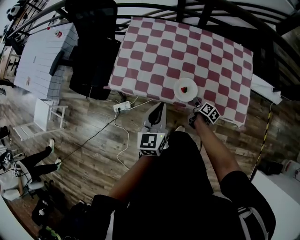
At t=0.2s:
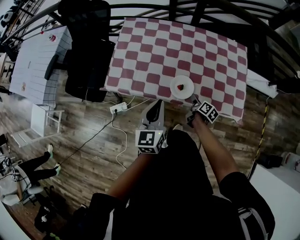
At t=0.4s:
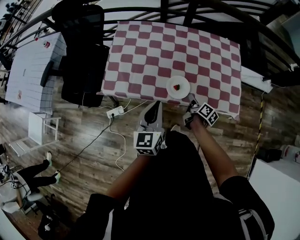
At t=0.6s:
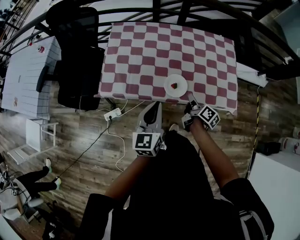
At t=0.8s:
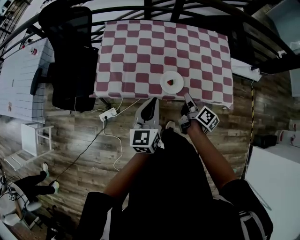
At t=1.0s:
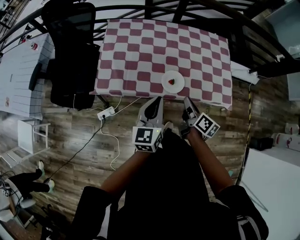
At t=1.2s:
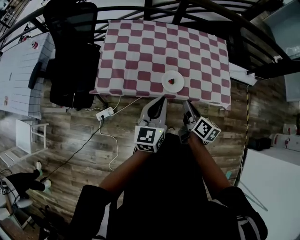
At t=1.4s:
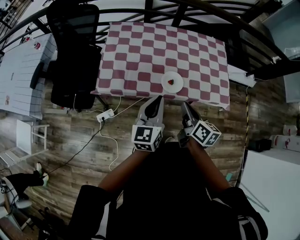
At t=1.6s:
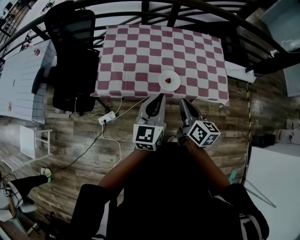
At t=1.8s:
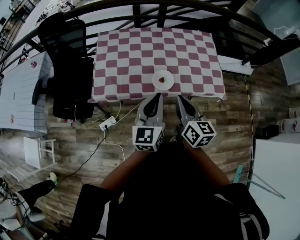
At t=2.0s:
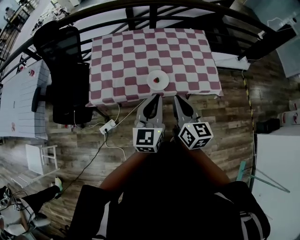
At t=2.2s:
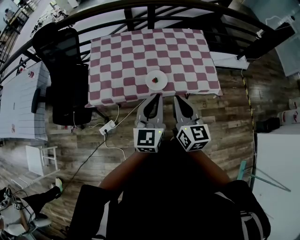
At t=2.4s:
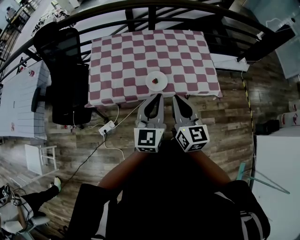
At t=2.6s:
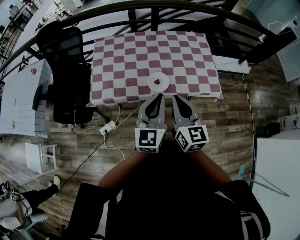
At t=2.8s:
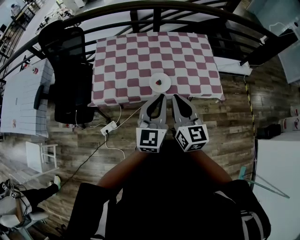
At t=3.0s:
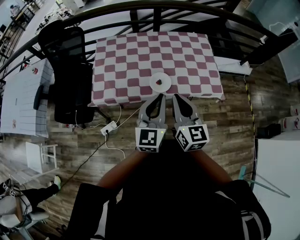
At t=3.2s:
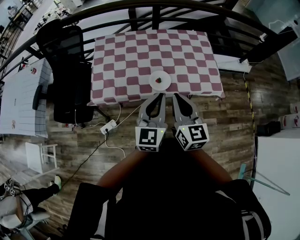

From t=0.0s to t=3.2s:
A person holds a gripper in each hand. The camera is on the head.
From t=0.0s to t=1.6s: The left gripper travels upward and backward by approximately 10 cm, and changes its angle by some 20 degrees, while the right gripper heads upward and backward, covering approximately 35 cm, and rotates about 40 degrees.
From t=1.6s to t=3.2s: The left gripper moves to the right, some 5 cm. Meanwhile the right gripper goes approximately 5 cm upward, and changes its angle by about 30 degrees.

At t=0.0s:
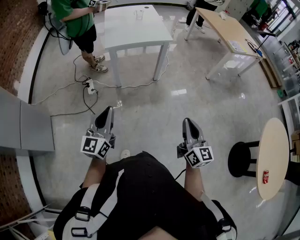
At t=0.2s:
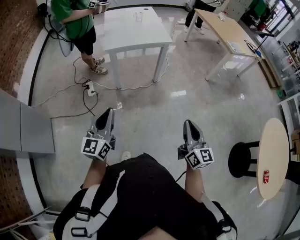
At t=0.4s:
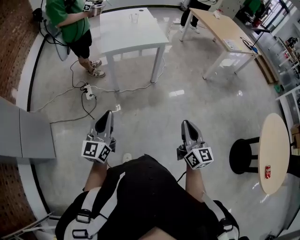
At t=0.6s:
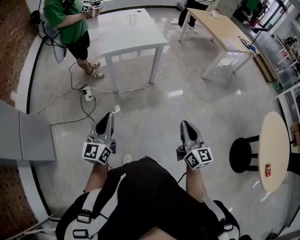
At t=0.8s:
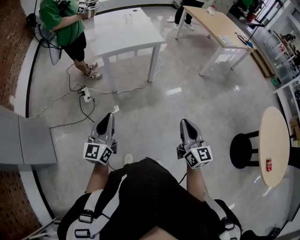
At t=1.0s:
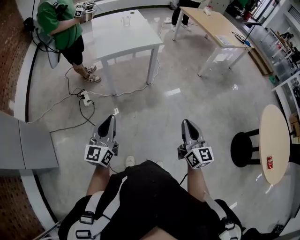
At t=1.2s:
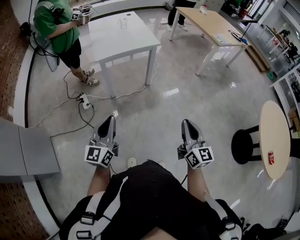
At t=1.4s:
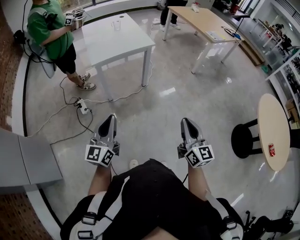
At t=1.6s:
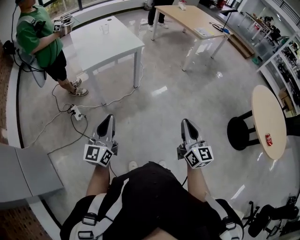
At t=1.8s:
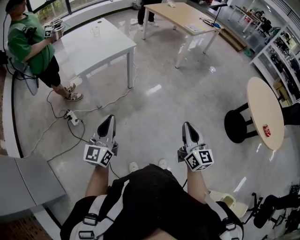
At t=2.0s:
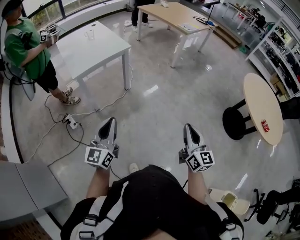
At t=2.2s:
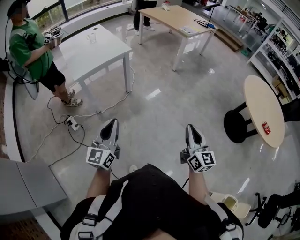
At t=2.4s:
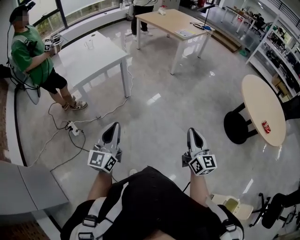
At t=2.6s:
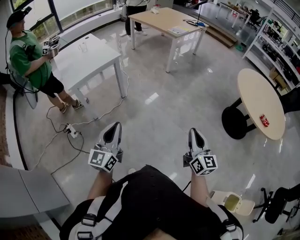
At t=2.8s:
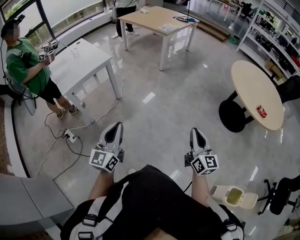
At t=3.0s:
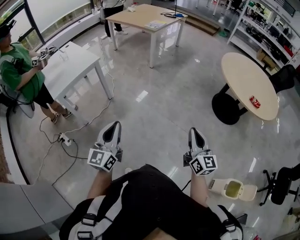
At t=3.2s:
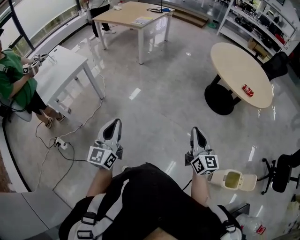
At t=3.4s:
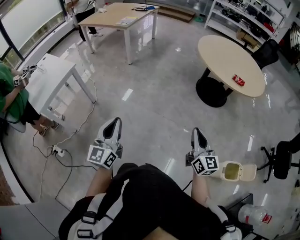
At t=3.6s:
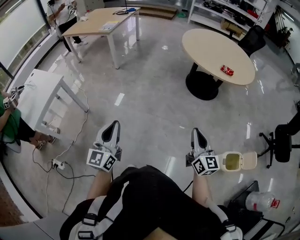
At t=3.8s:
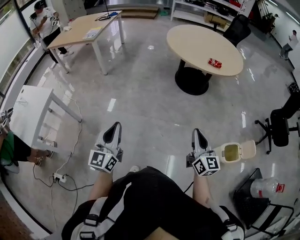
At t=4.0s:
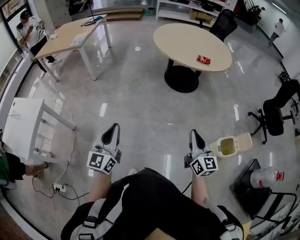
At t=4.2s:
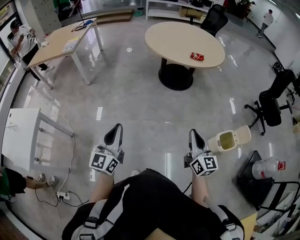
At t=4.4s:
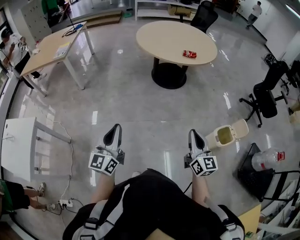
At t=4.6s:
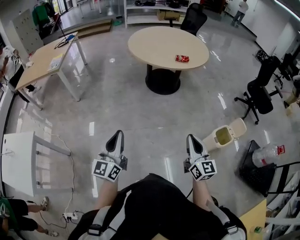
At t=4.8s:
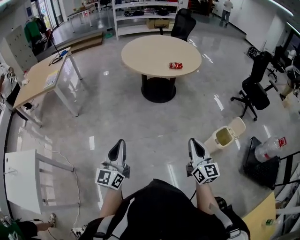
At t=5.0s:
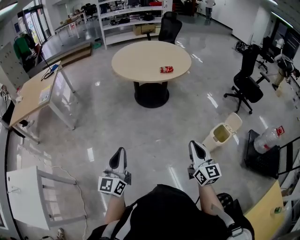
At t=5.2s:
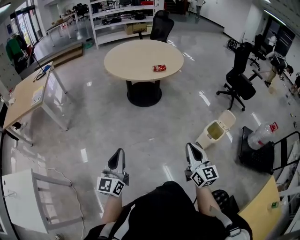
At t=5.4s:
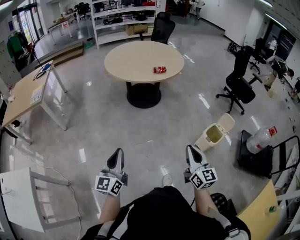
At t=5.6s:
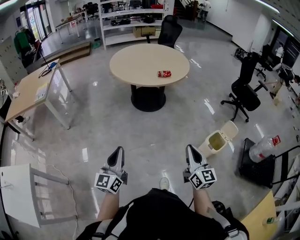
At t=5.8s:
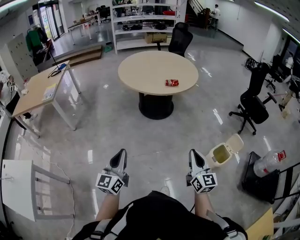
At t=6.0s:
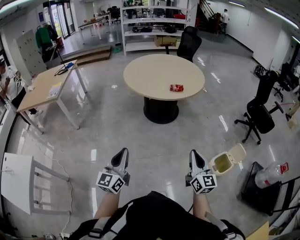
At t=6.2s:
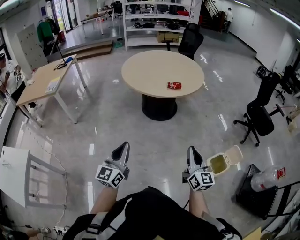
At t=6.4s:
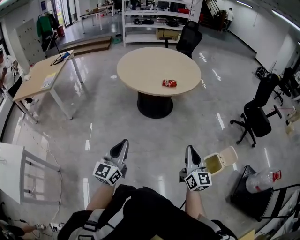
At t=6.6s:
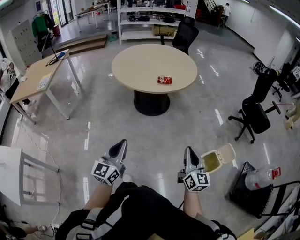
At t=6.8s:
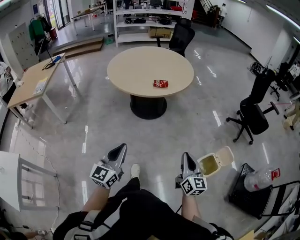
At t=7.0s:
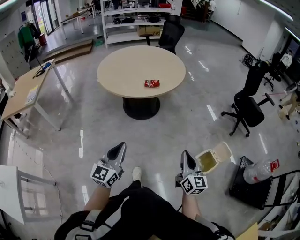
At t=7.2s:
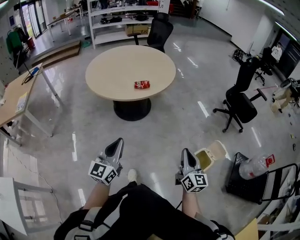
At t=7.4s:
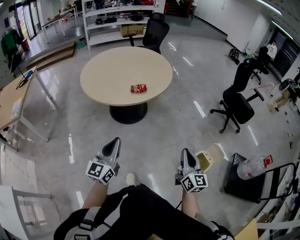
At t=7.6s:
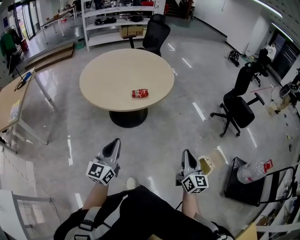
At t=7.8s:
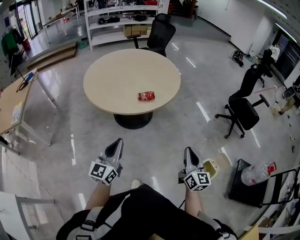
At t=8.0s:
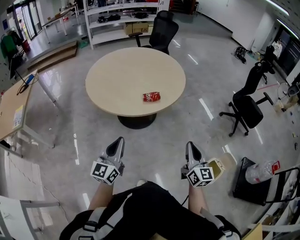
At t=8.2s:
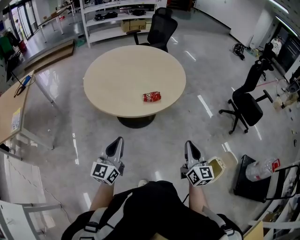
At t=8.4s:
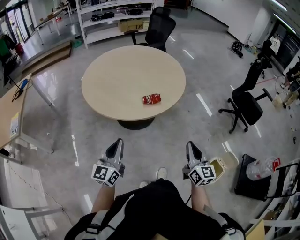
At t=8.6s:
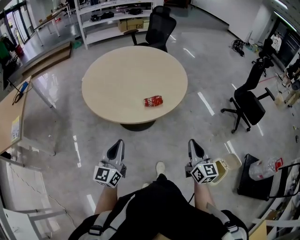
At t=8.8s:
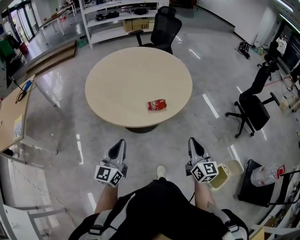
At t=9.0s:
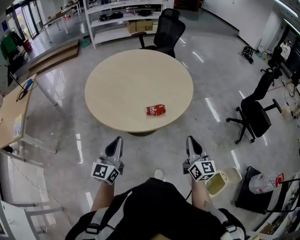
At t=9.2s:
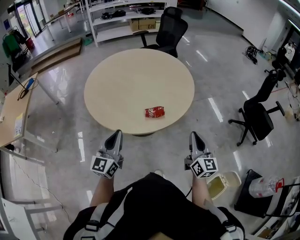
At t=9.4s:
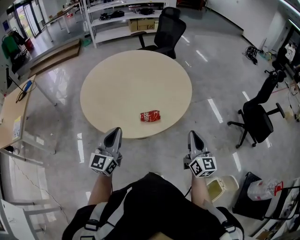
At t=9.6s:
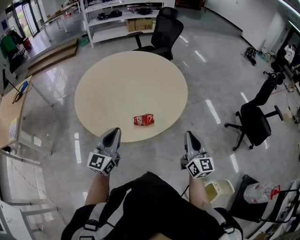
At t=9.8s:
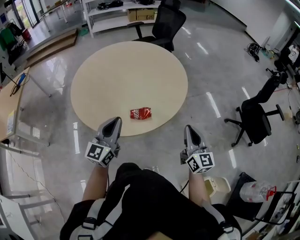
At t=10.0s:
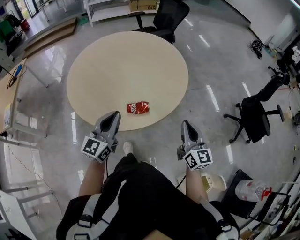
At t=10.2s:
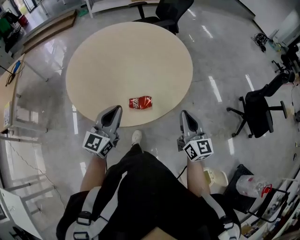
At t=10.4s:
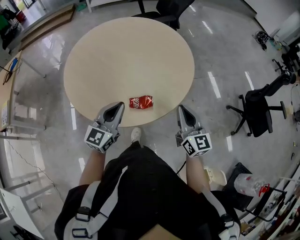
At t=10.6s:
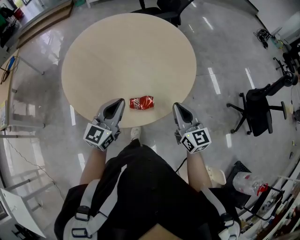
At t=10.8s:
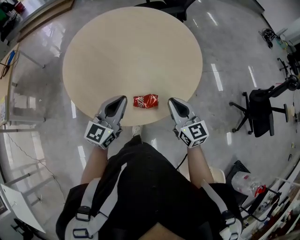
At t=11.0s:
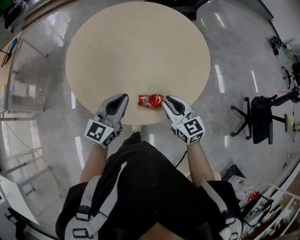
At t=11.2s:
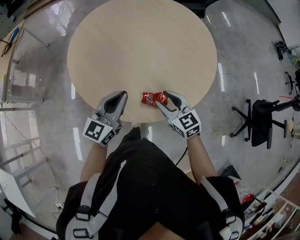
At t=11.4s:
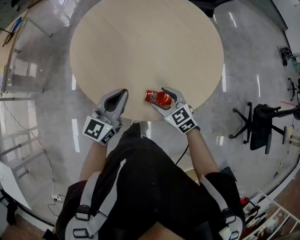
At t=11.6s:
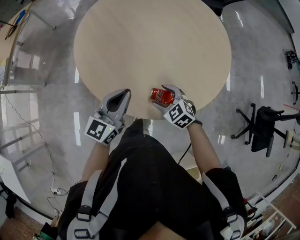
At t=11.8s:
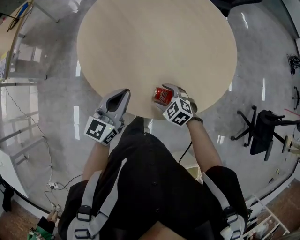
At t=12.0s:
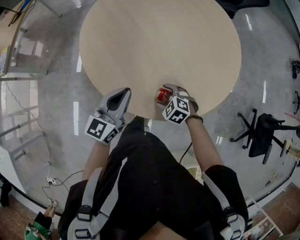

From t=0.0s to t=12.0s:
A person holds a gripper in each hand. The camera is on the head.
From t=0.0s to t=1.6s: The right gripper ends up some 5 cm from where it was.
From t=1.6s to t=3.0s: The right gripper goes approximately 25 cm to the right and backward, and changes its angle by some 20 degrees, while the left gripper goes about 20 cm to the right, and changes its angle by approximately 20 degrees.
From t=3.0s to t=4.4s: The right gripper ends up some 20 cm from where it was, and rotates about 40 degrees. The left gripper moves roughly 25 cm, and changes its angle by some 40 degrees.
From t=4.4s to t=6.0s: Both grippers move forward and to the right, some 15 cm.
From t=6.0s to t=7.6s: Both grippers move forward and to the right, about 25 cm.
From t=7.6s to t=9.0s: The grippers both shift forward and to the left by about 25 cm.
From t=9.0s to t=10.4s: The right gripper is displaced forward by approximately 20 cm, while the left gripper goes some 25 cm forward and to the right.
From t=10.4s to t=12.0s: The left gripper moves roughly 15 cm, and swivels approximately 20 degrees; the right gripper is displaced downward by approximately 25 cm, tilts its fingers roughly 60 degrees downward, and opens up.

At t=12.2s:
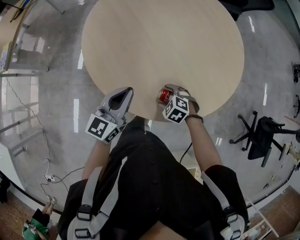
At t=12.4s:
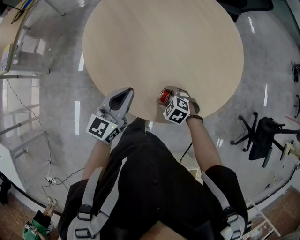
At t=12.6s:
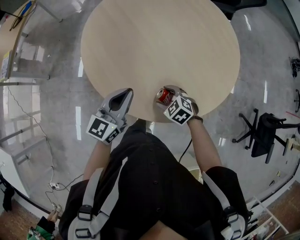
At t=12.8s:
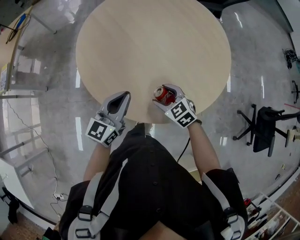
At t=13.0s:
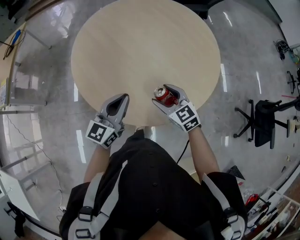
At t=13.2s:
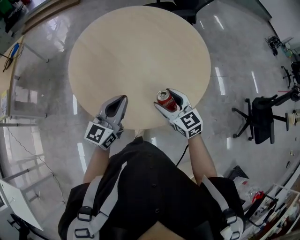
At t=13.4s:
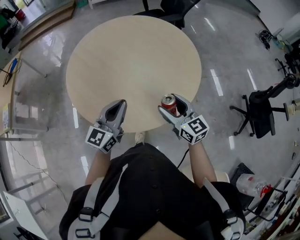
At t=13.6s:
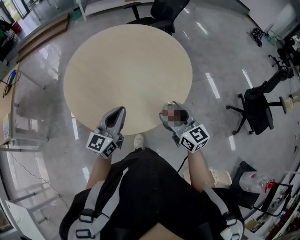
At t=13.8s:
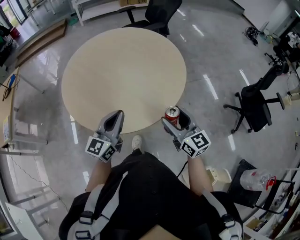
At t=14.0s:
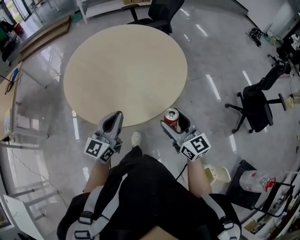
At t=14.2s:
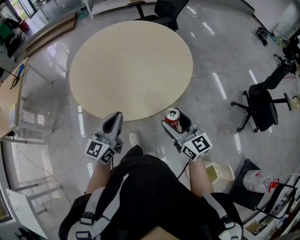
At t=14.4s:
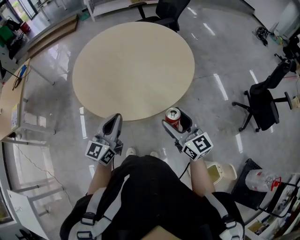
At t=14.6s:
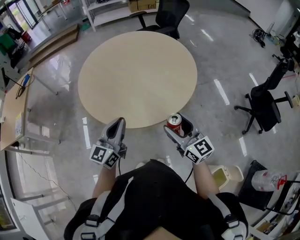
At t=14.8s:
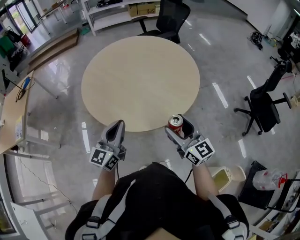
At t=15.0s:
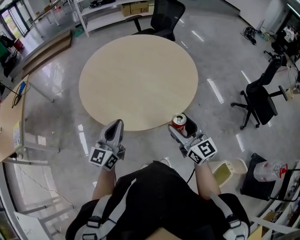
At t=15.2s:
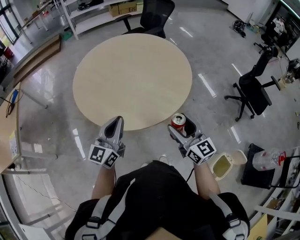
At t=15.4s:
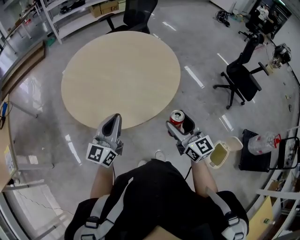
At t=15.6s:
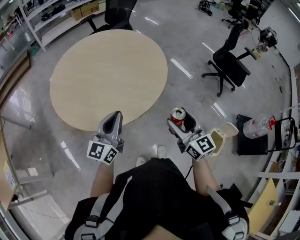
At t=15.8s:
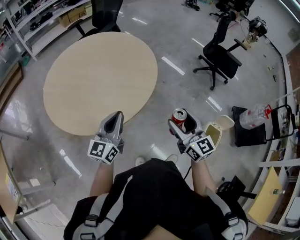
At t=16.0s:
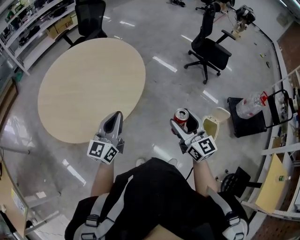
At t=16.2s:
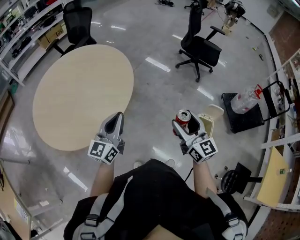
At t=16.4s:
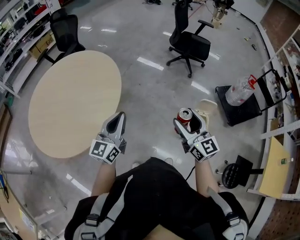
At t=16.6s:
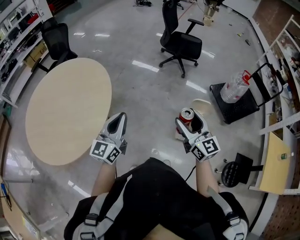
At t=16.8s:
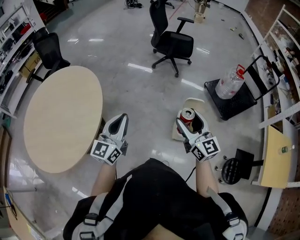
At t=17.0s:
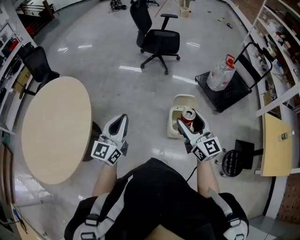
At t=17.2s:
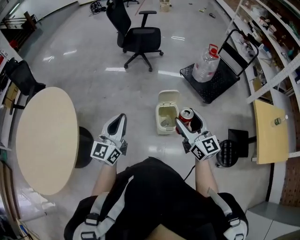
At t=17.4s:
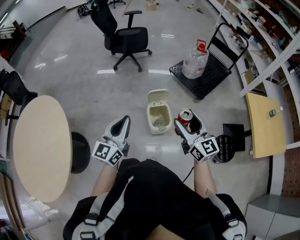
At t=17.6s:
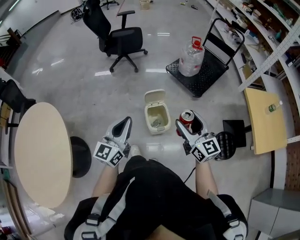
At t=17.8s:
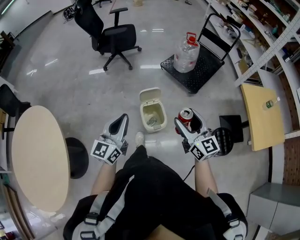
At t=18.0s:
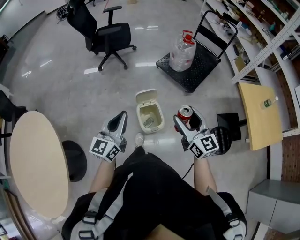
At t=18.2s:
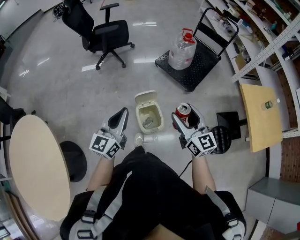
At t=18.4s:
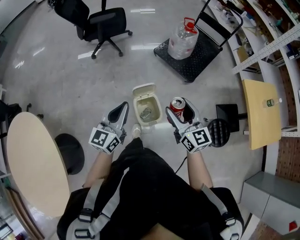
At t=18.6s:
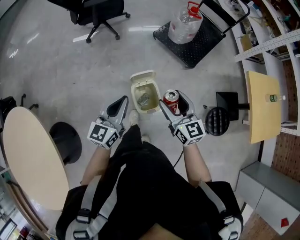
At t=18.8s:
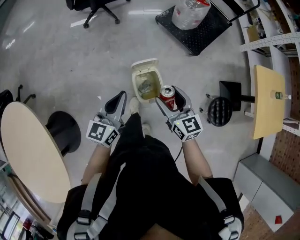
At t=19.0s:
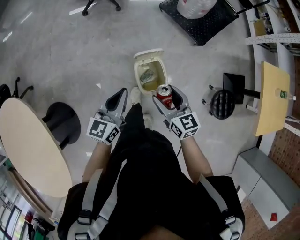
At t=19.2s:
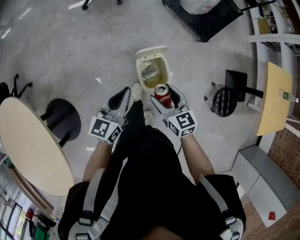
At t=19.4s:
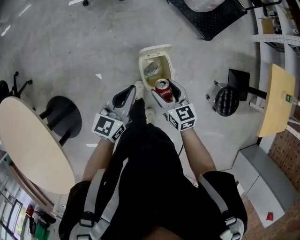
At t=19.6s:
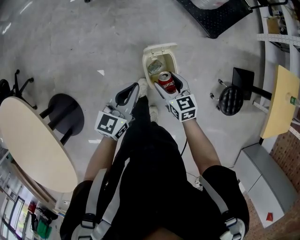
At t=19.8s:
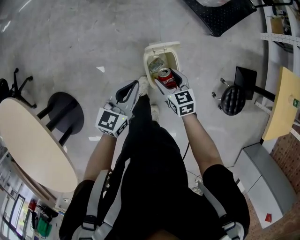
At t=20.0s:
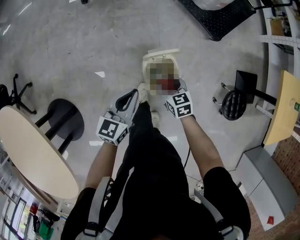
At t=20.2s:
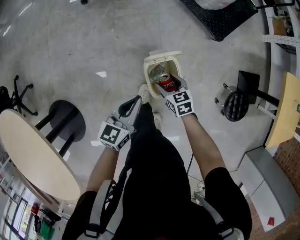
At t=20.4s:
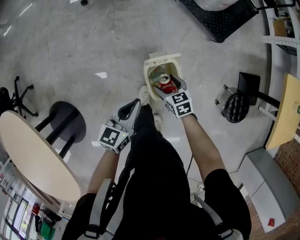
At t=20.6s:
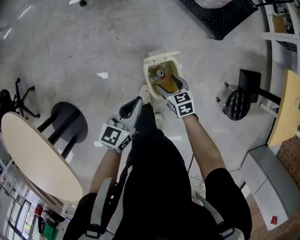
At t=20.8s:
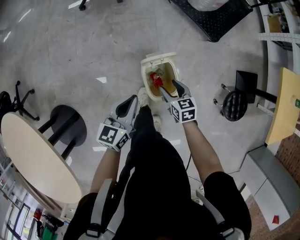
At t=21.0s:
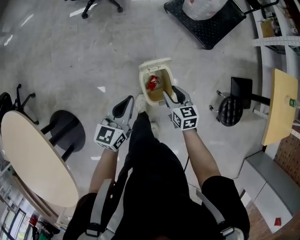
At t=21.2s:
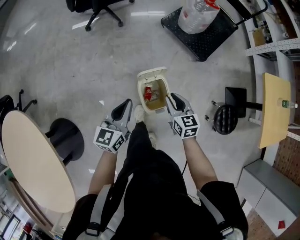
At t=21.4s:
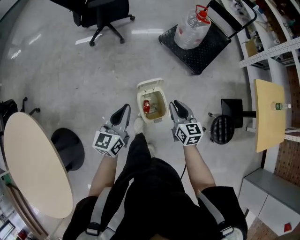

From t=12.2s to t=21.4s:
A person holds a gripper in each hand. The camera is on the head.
From t=12.2s to t=13.8s: The right gripper moves upward, some 30 cm, and angles its fingers upward, by some 60 degrees; the left gripper ends up some 15 cm from where it was.
From t=13.8s to t=15.2s: The right gripper is displaced to the left and backward by about 15 cm, while the left gripper travels to the left by roughly 15 cm.
From t=15.2s to t=16.8s: The left gripper changes place by approximately 40 cm, and turns by some 50 degrees. Meanwhile the right gripper changes place by about 40 cm, and rotates about 50 degrees.
From t=16.8s to t=18.4s: The left gripper shifts by roughly 40 cm, and changes its angle by some 30 degrees. The right gripper changes place by about 30 cm, and changes its angle by some 30 degrees.
From t=18.4s to t=19.8s: The right gripper heads downward, covering roughly 30 cm, and points its fingers some 40 degrees further downward. Meanwhile the left gripper heads downward, covering some 20 cm, and changes its angle by about 20 degrees.
From t=19.8s to t=21.4s: The left gripper shifts roughly 10 cm upward. The right gripper is displaced upward and to the right by approximately 15 cm, turns by roughly 20 degrees, and closes up.
